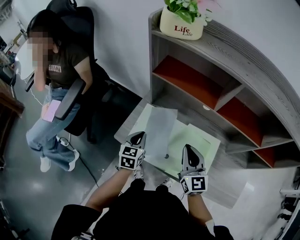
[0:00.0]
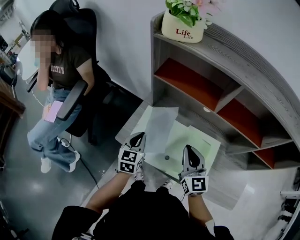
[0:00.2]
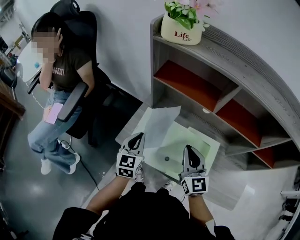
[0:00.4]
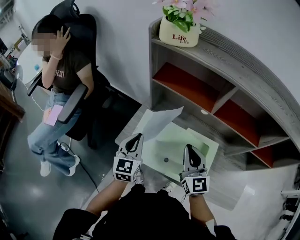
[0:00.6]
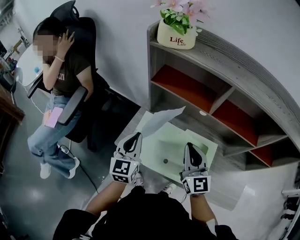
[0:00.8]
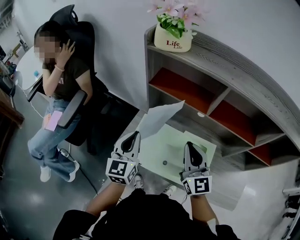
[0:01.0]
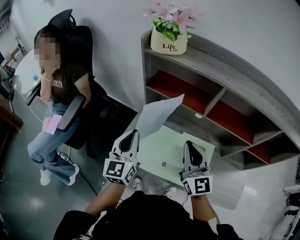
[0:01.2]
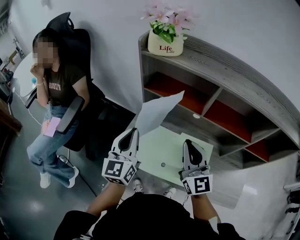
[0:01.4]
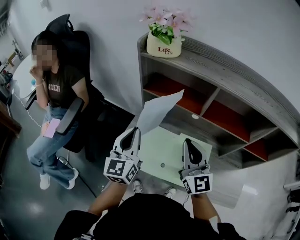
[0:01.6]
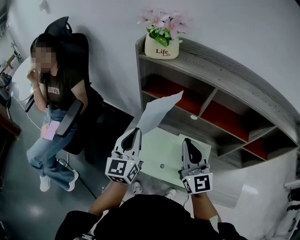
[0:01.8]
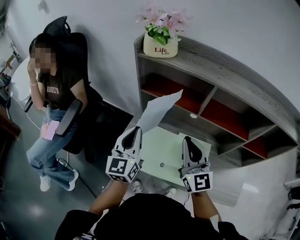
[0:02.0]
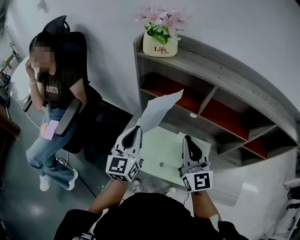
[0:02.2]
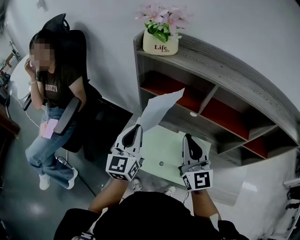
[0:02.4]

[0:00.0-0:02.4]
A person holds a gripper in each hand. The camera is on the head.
0:00.0 to 0:01.2: The right gripper travels upward by approximately 10 cm. Meanwhile the left gripper moves upward, roughly 20 cm, and swivels roughly 30 degrees.
0:01.2 to 0:02.4: There are only small adjustments of the grippers.

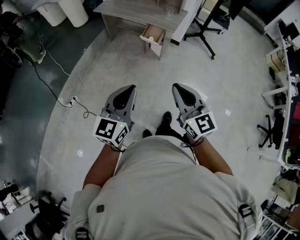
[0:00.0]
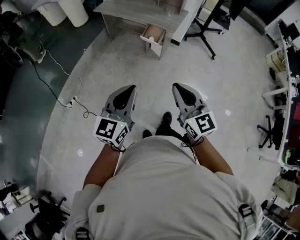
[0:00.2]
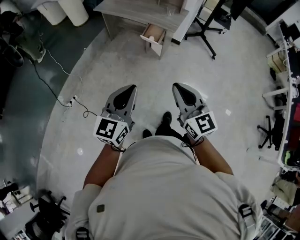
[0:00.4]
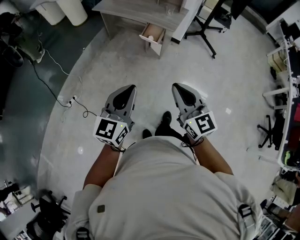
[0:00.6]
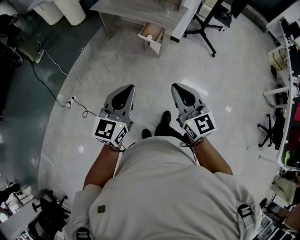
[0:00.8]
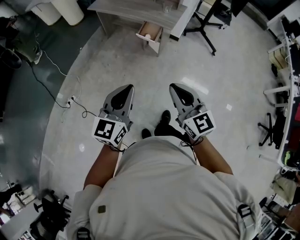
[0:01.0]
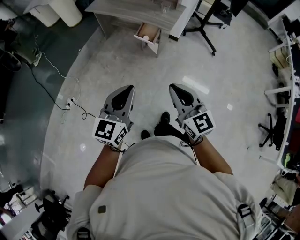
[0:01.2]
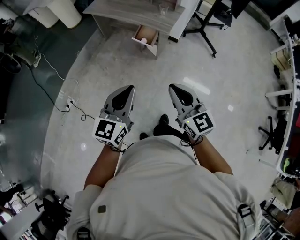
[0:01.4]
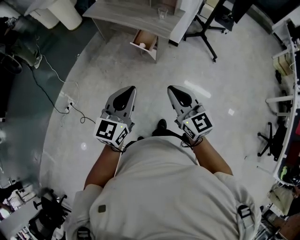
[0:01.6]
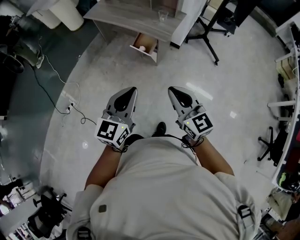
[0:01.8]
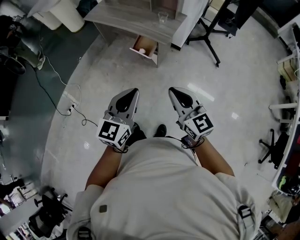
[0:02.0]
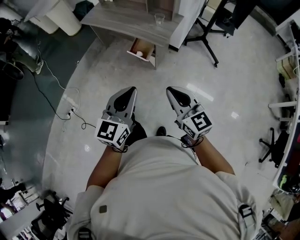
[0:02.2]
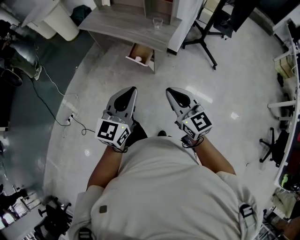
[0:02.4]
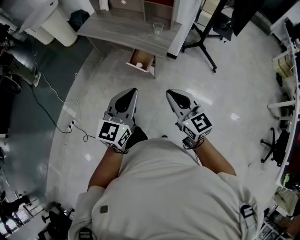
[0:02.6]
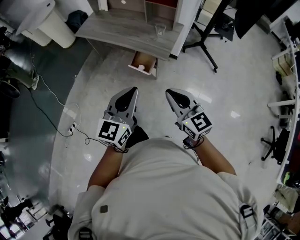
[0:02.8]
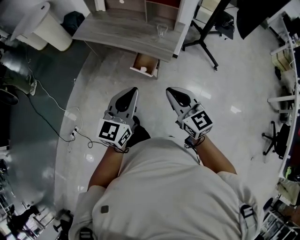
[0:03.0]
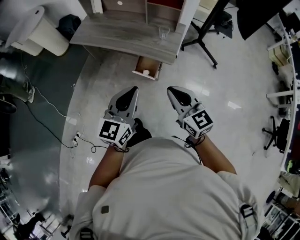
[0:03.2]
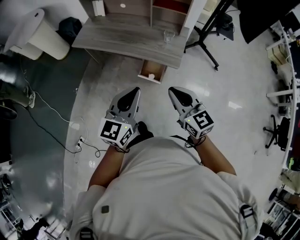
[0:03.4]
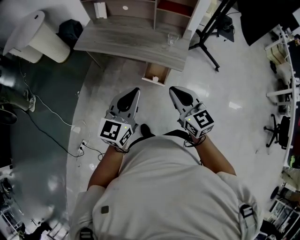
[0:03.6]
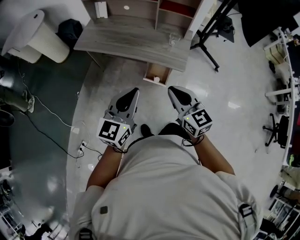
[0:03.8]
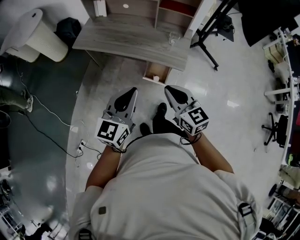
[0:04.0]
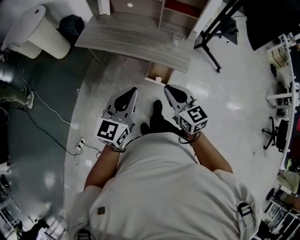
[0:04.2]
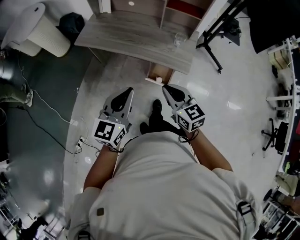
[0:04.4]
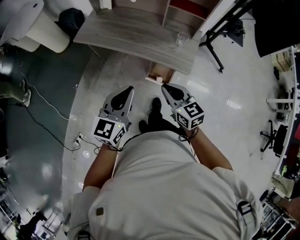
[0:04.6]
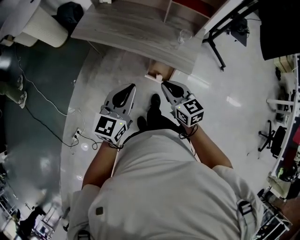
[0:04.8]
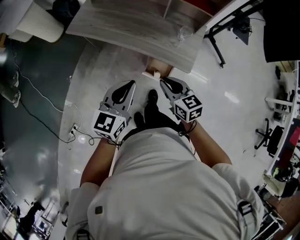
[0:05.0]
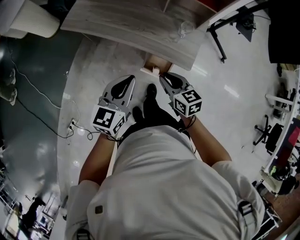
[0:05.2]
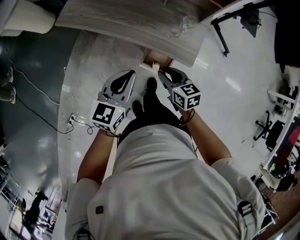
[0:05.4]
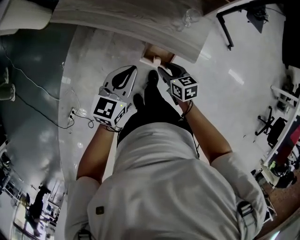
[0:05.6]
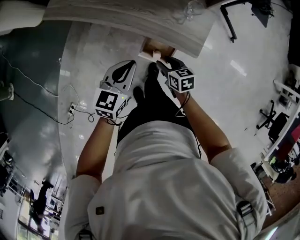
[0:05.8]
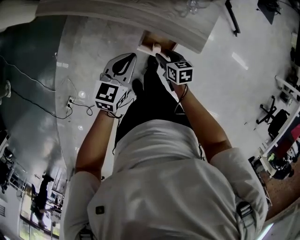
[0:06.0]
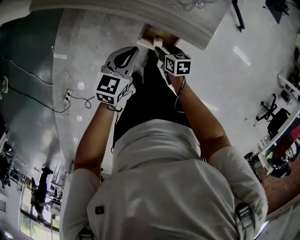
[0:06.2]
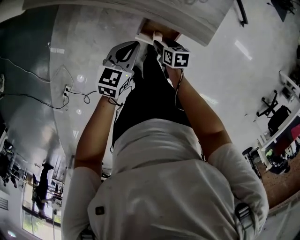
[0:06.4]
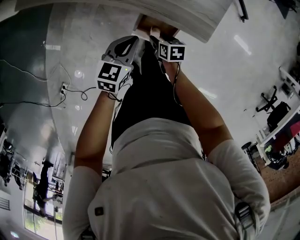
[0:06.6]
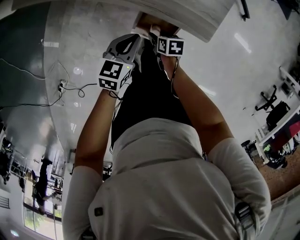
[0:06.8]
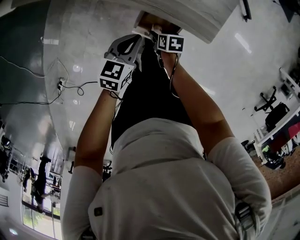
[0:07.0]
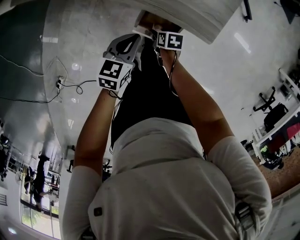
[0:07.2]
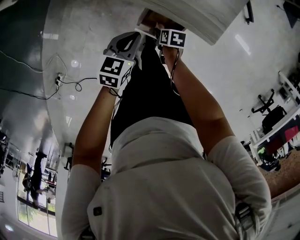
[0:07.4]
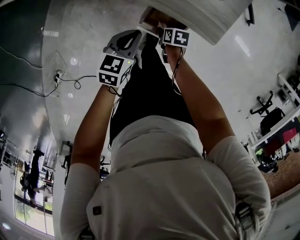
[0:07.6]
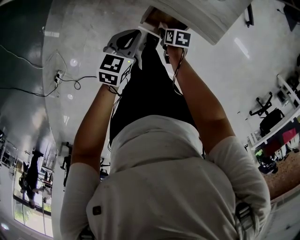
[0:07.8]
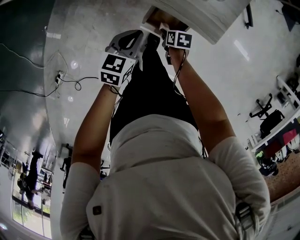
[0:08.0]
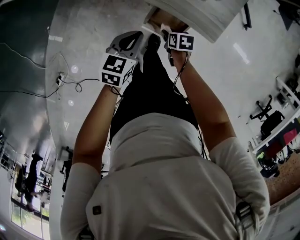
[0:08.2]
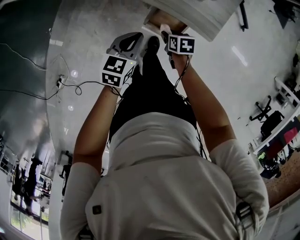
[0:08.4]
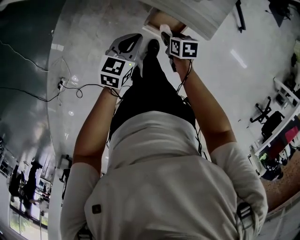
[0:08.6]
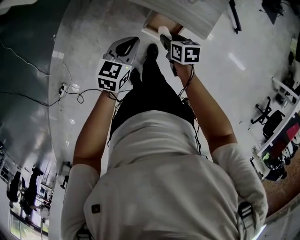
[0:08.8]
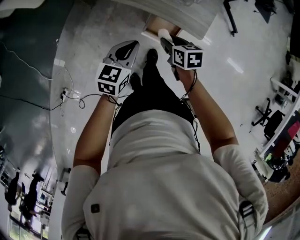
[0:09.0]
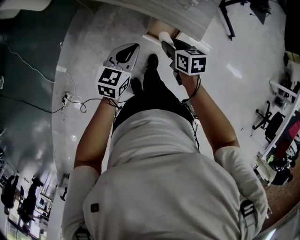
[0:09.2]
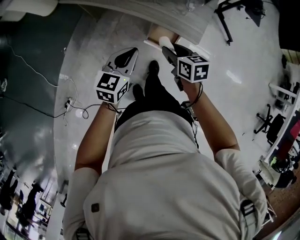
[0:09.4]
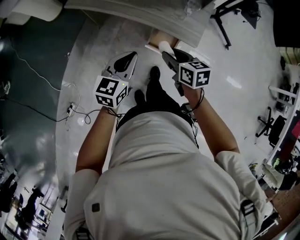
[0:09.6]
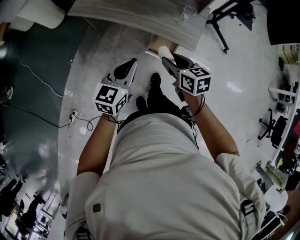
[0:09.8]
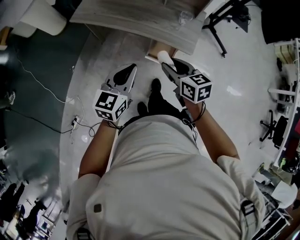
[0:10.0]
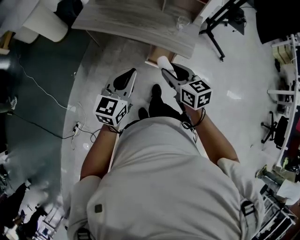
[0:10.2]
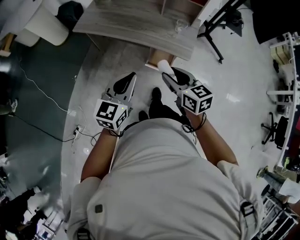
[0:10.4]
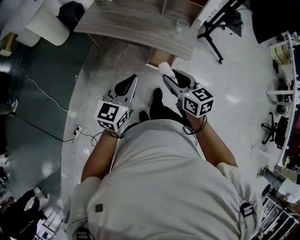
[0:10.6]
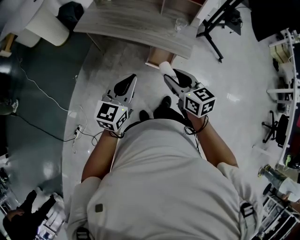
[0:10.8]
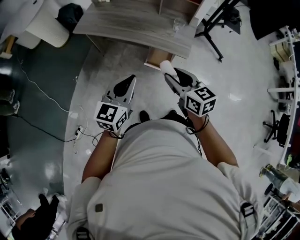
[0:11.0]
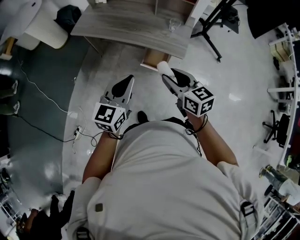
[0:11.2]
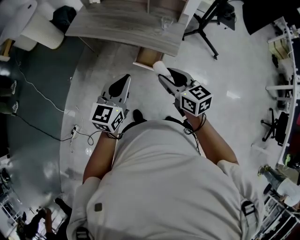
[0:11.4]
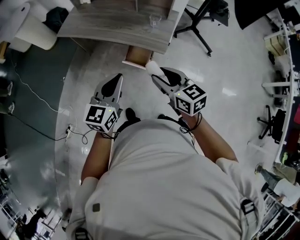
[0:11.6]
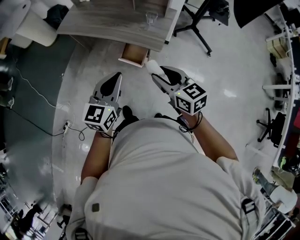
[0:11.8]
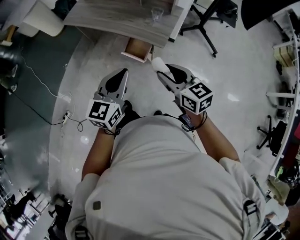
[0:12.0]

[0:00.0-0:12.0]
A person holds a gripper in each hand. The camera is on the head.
0:00.0 to 0:01.6: The grippers both shift forward and to the right by about 25 cm.
0:01.6 to 0:03.0: Both grippers travel together forward, about 25 cm.
0:03.0 to 0:04.4: Both grippers move to the left and forward, some 25 cm.
0:04.4 to 0:06.0: The two grippers go some 40 cm downward and forward. The right gripper tips its fingers downward by about 30 degrees, and opens; the left gripper swivels approximately 30 degrees.
0:06.0 to 0:07.6: The two grippers go approximately 15 cm downward. The right gripper rotates roughly 30 degrees.
0:07.6 to 0:09.0: The right gripper travels upward by approximately 30 cm, and rotates about 30 degrees. The left gripper is displaced upward and backward by some 20 cm.
0:09.0 to 0:10.4: The two grippers go about 30 cm upward and backward. The left gripper swivels approximately 20 degrees. The right gripper rotates about 30 degrees.
0:10.4 to 0:12.0: The left gripper moves to the right, about 20 cm. Meanwhile the right gripper moves to the right and backward, approximately 25 cm.

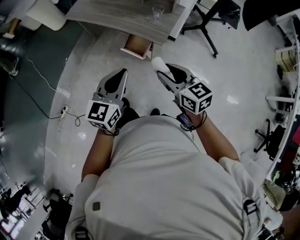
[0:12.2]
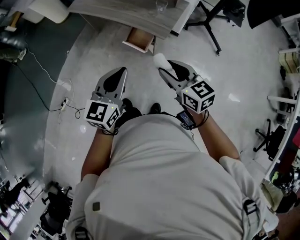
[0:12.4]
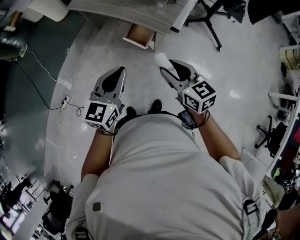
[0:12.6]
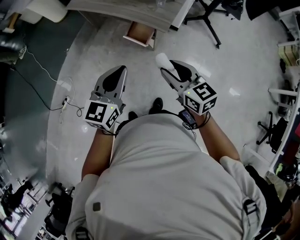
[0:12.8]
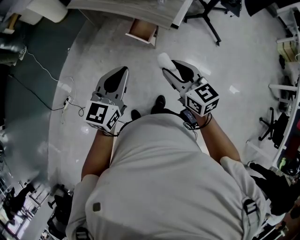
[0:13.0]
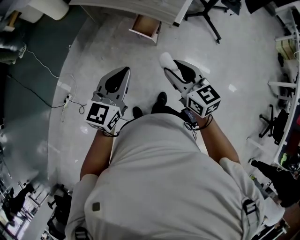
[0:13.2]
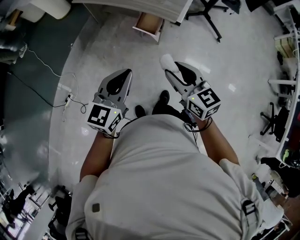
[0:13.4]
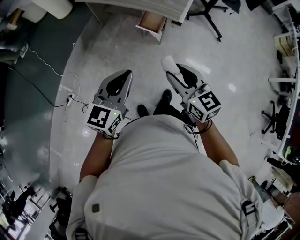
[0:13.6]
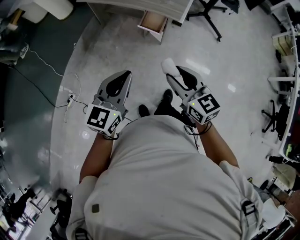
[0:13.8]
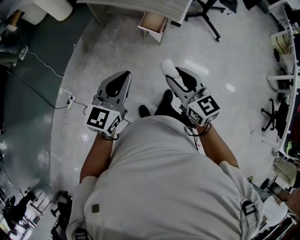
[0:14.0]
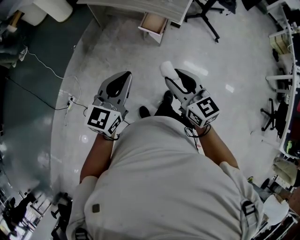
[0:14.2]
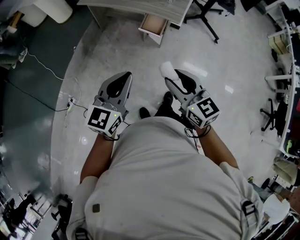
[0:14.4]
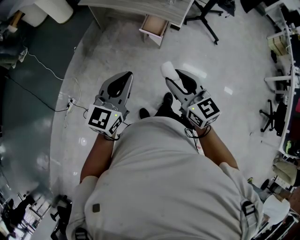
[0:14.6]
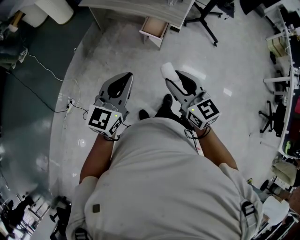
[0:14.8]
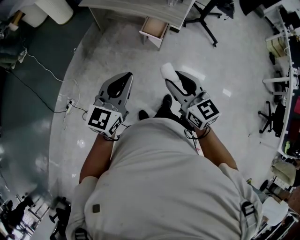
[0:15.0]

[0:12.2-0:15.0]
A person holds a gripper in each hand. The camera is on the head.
0:12.2 to 0:13.6: Both grippers travel together backward and to the left, approximately 25 cm.
0:13.6 to 0:15.0: The grippers both shift to the left by roughly 5 cm.

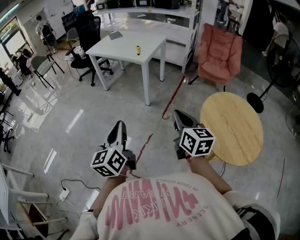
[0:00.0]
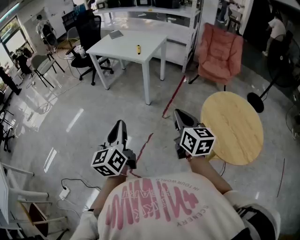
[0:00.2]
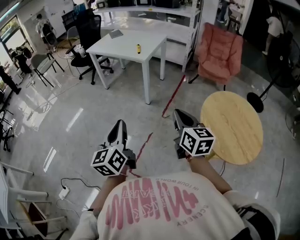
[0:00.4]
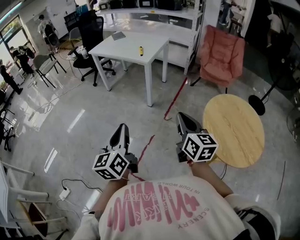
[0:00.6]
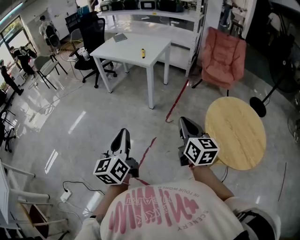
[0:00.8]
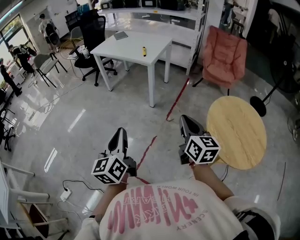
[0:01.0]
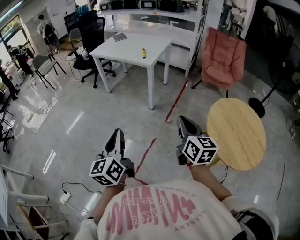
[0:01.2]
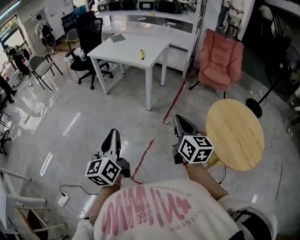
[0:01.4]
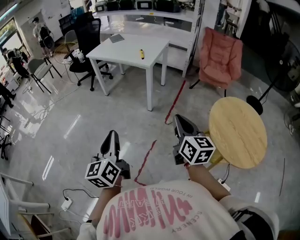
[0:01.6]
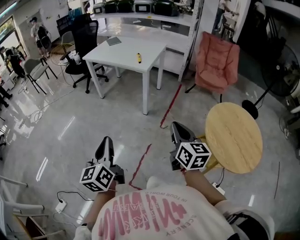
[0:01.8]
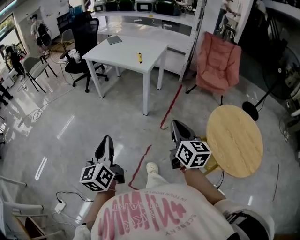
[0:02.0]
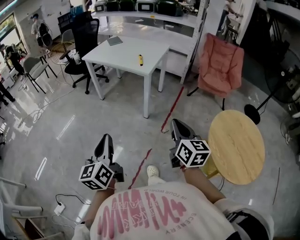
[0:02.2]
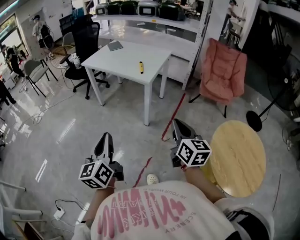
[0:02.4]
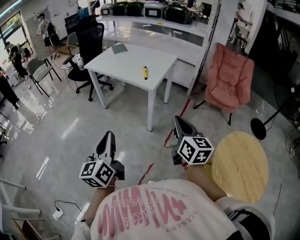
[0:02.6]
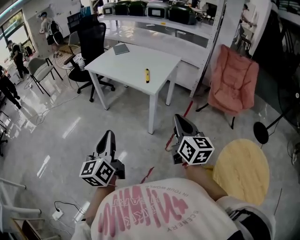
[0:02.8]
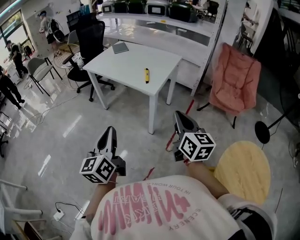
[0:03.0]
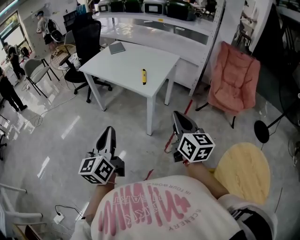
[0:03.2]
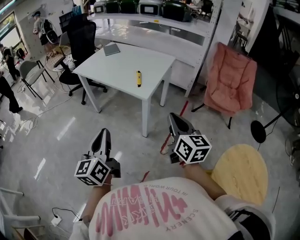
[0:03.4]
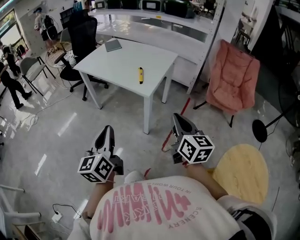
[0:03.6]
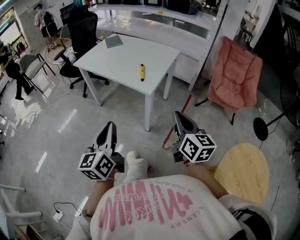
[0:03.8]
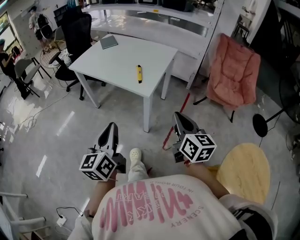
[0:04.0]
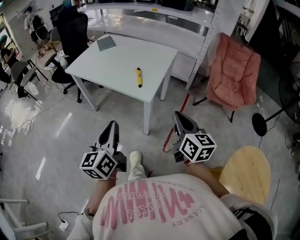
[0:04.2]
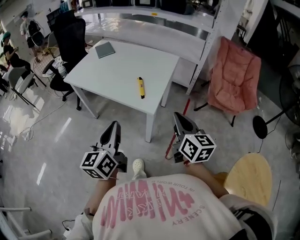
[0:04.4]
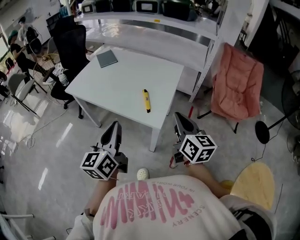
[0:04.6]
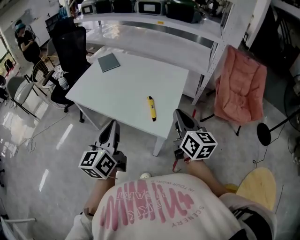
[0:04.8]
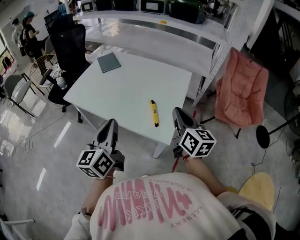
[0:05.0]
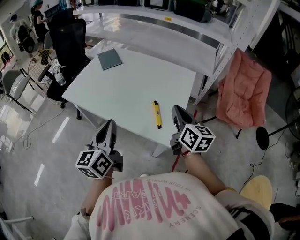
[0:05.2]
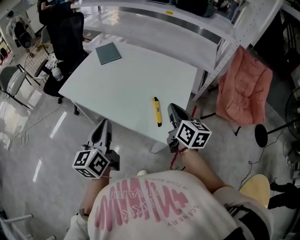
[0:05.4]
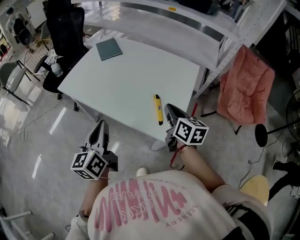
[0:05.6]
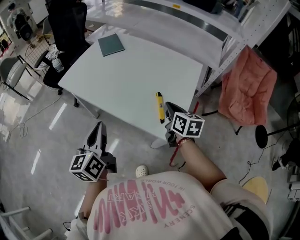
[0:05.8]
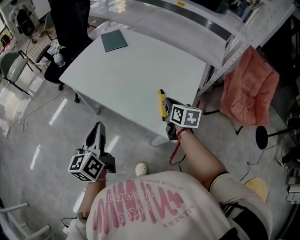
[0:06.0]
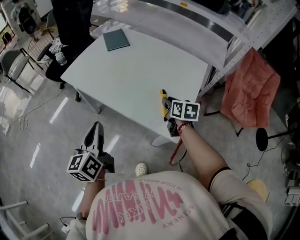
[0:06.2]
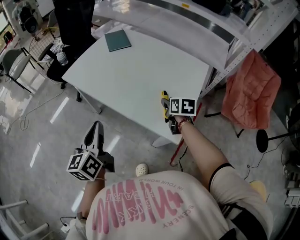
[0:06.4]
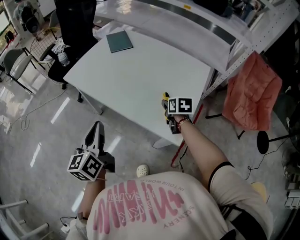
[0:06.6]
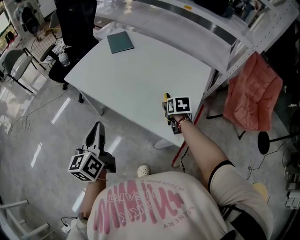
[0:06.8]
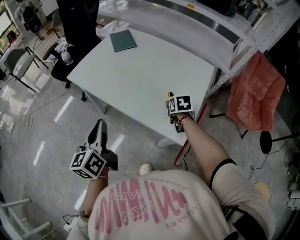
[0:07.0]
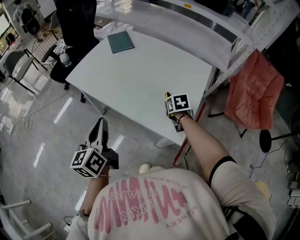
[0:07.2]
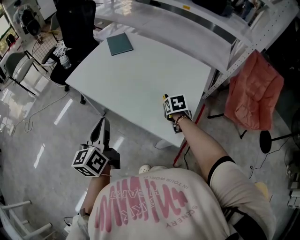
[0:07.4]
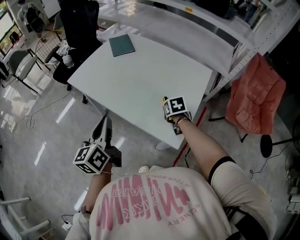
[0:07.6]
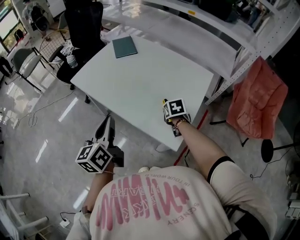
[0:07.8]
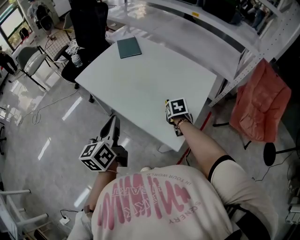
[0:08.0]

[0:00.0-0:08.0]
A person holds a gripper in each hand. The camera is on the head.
0:00.0 to 0:01.6: Both grippers move to the left, approximately 10 cm.
0:01.6 to 0:03.2: Both grippers are carried forward, roughly 40 cm.
0:03.2 to 0:04.8: Both grippers move forward, roughly 40 cm.
0:04.8 to 0:06.4: The right gripper travels forward and downward by some 30 cm, points its fingers approximately 40 degrees further downward, and opens. The left gripper is displaced to the left, forward and downward by some 20 cm.
0:06.4 to 0:08.0: The right gripper turns by about 20 degrees; the left gripper travels to the right by some 5 cm.
